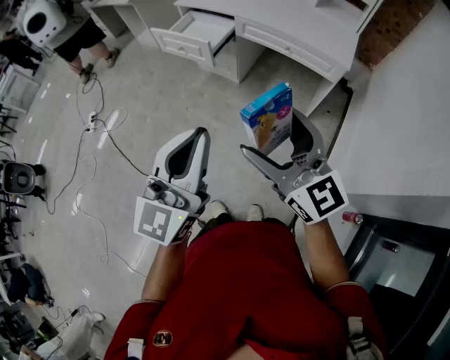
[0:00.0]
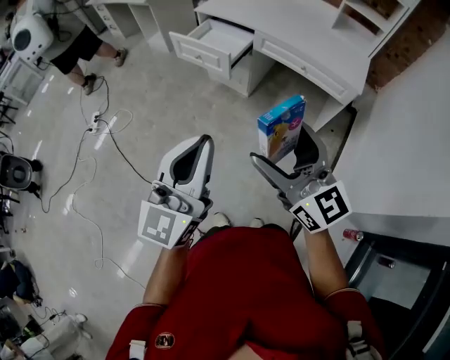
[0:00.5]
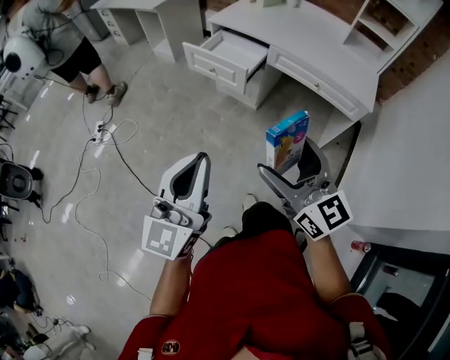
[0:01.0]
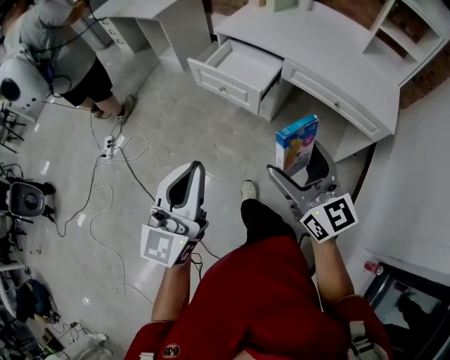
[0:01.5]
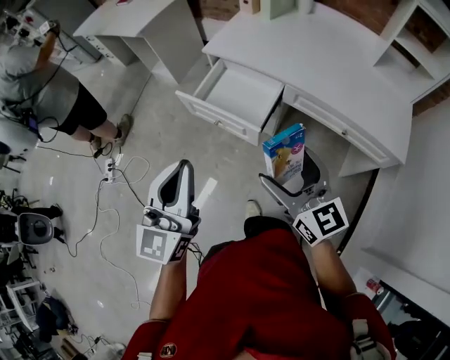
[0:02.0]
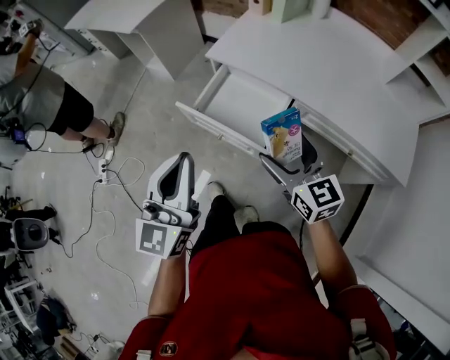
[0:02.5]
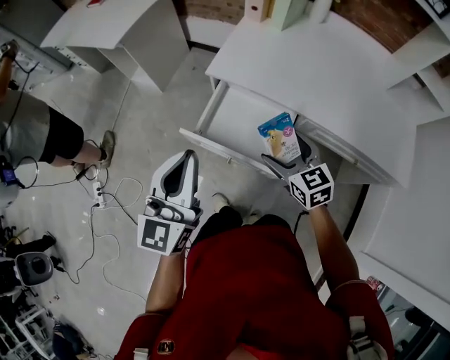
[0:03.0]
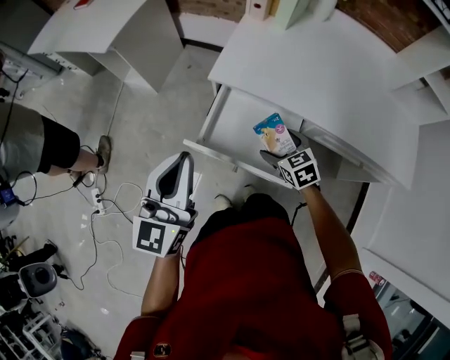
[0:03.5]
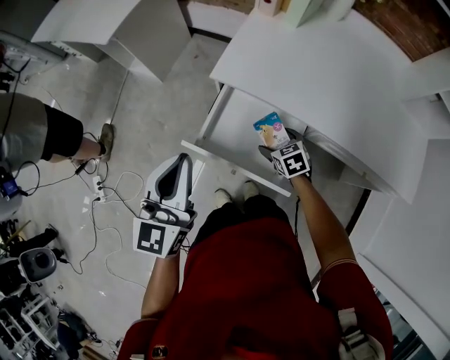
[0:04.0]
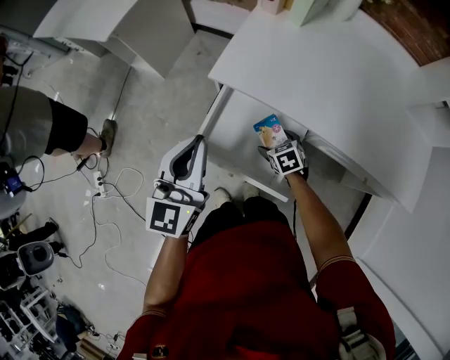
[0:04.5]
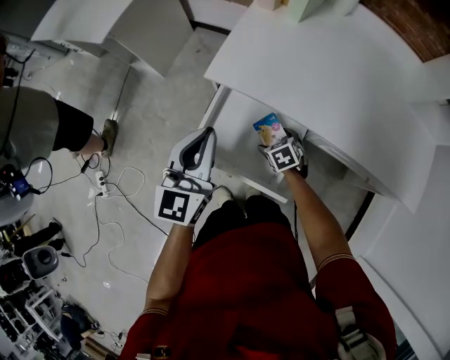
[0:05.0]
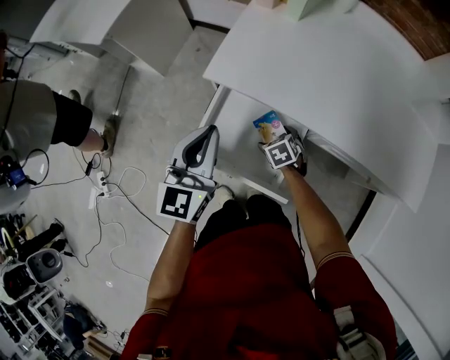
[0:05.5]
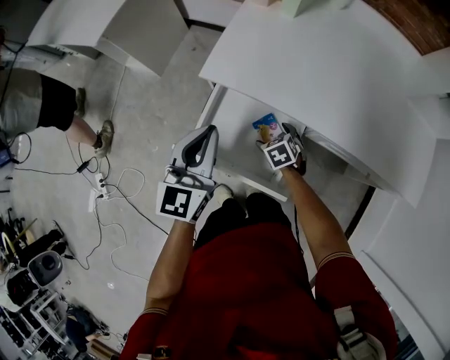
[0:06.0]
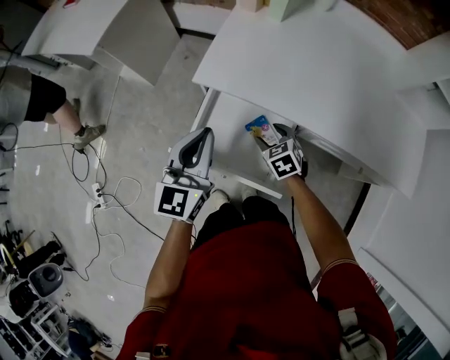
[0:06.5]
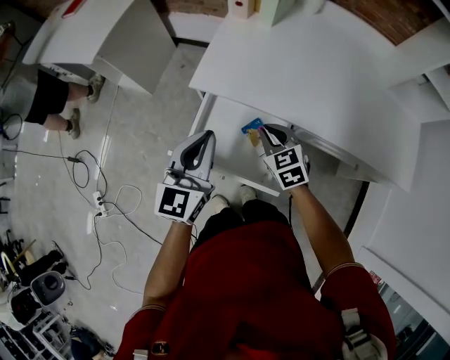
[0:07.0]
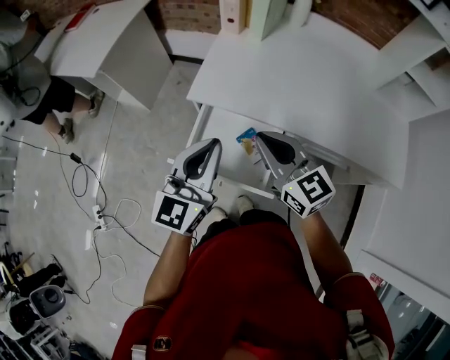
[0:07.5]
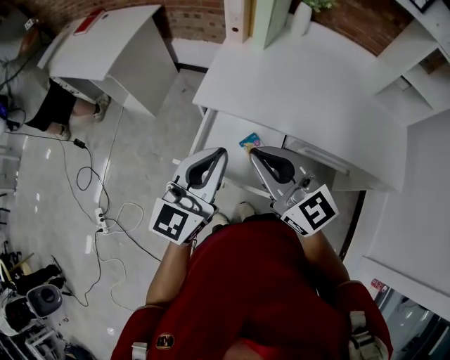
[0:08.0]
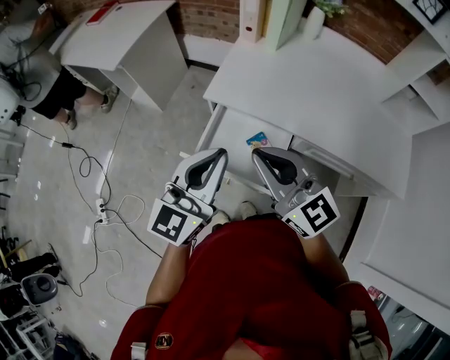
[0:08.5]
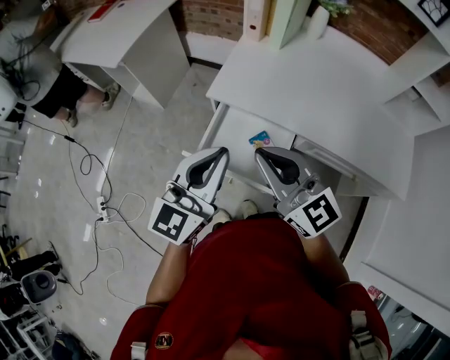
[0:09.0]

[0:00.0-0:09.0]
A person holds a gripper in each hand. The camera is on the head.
0:00.0 to 0:02.0: The pair of grippers is taken forward, approximately 50 cm.
0:02.0 to 0:04.5: The left gripper moves forward, roughly 40 cm. The right gripper heads forward and downward, covering about 50 cm, and angles its fingers downward, by roughly 60 degrees.
0:04.5 to 0:07.0: The left gripper shifts by approximately 5 cm. Meanwhile the right gripper goes approximately 15 cm upward, swivels about 20 degrees, and closes up.
0:07.0 to 0:09.0: The left gripper shifts roughly 15 cm upward and backward; the right gripper moves upward and backward, approximately 30 cm, and points its fingers about 40 degrees further upward.

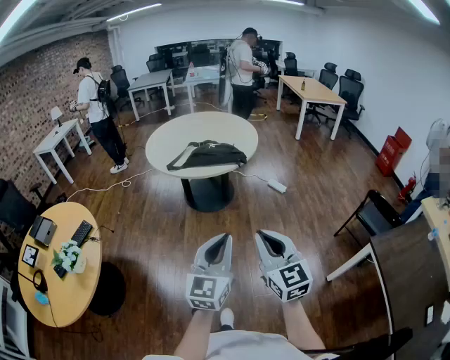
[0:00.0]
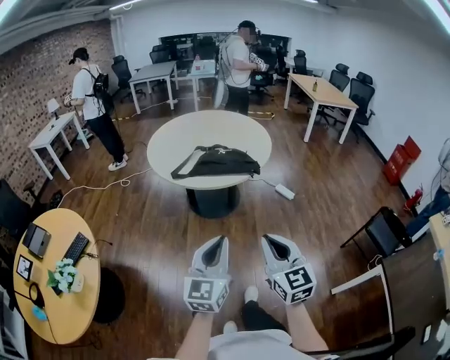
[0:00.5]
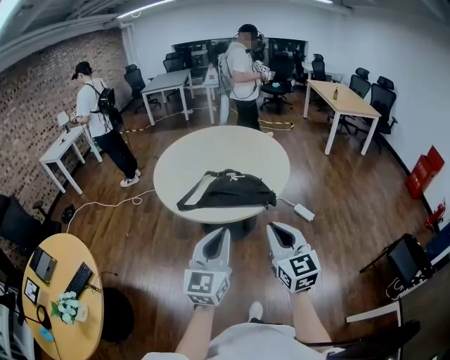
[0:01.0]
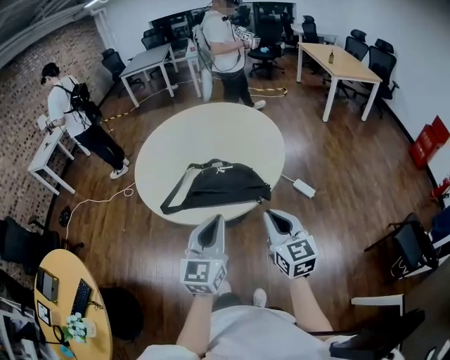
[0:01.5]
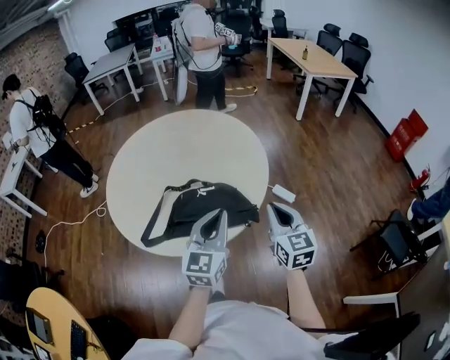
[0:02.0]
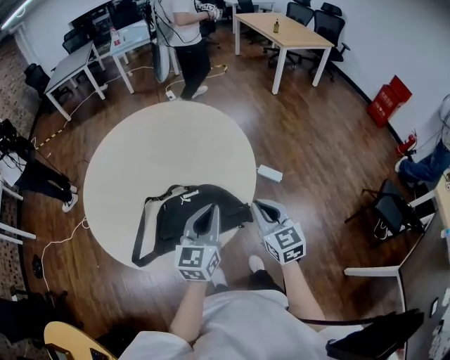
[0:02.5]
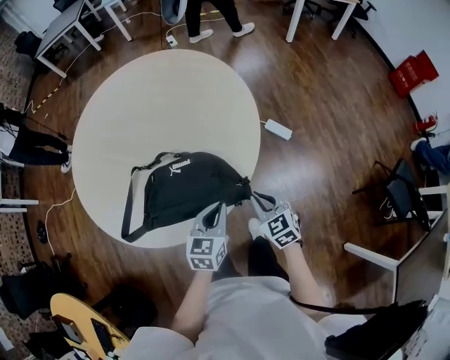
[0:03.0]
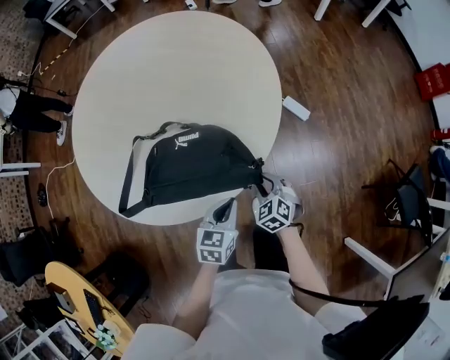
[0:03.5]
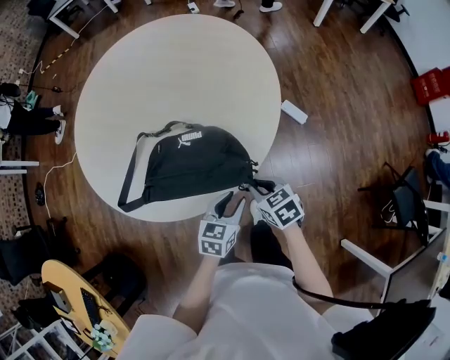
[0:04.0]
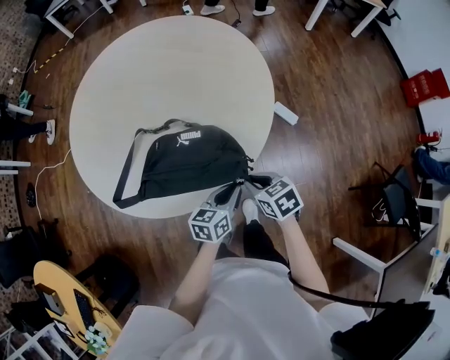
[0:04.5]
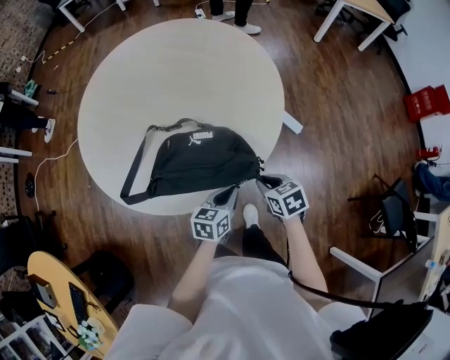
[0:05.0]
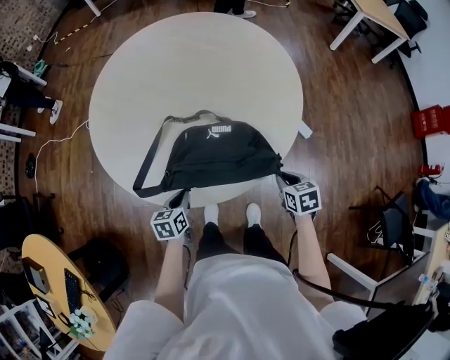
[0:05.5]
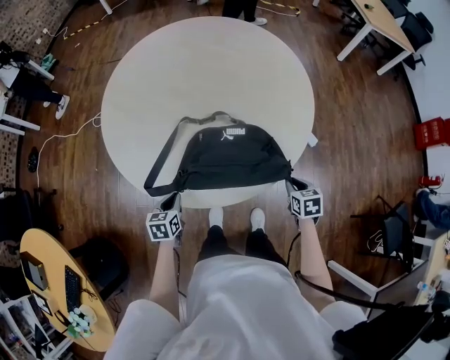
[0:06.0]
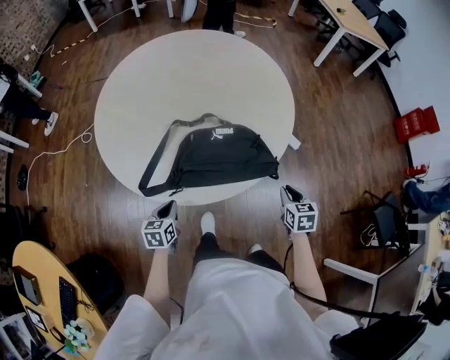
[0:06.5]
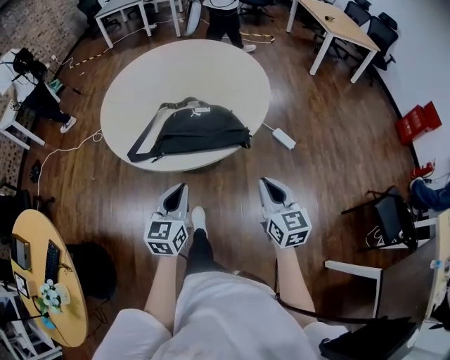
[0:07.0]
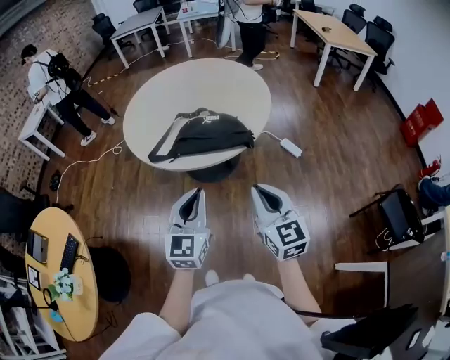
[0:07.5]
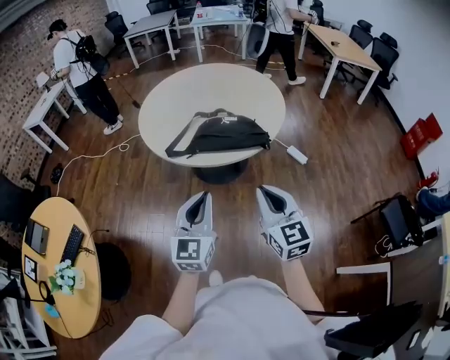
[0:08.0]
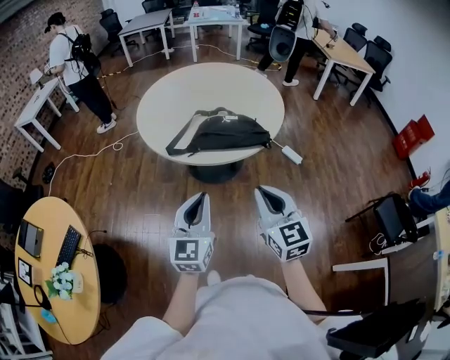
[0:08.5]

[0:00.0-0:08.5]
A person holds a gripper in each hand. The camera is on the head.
0:00.0 to 0:02.0: Both grippers are carried forward, about 70 cm. The right gripper swivels some 20 degrees.
0:02.0 to 0:04.0: Both grippers move downward, roughly 30 cm. The right gripper points its fingers roughly 40 degrees further downward; the left gripper tips its fingers downward by some 30 degrees, and opens up.
0:04.0 to 0:06.5: The right gripper moves backward, about 5 cm, and turns by approximately 30 degrees, while the left gripper is displaced to the left by roughly 30 cm, rotates approximately 20 degrees, and closes.
0:06.5 to 0:08.5: The right gripper goes some 50 cm backward, upward and to the left, and tilts its fingers some 40 degrees upward. Meanwhile the left gripper is displaced backward and upward by approximately 50 cm, and tilts its fingers roughly 40 degrees upward.

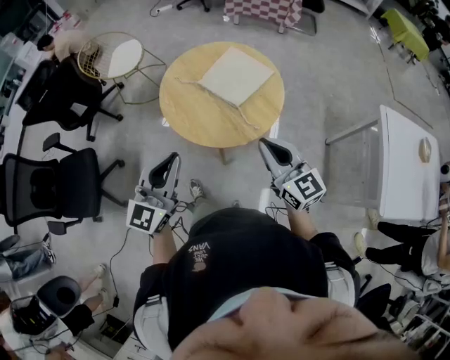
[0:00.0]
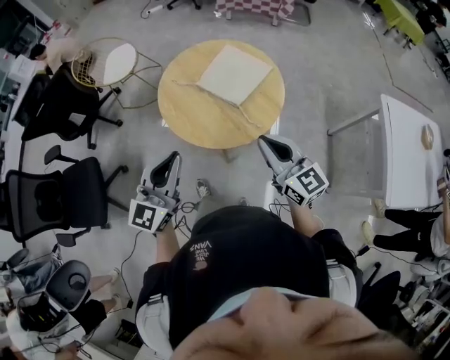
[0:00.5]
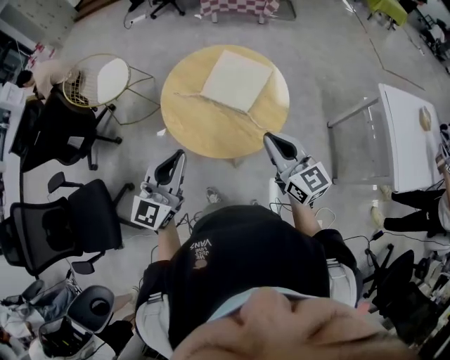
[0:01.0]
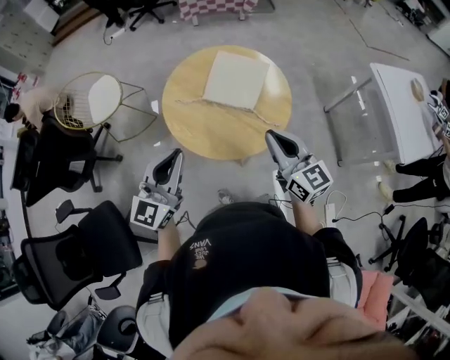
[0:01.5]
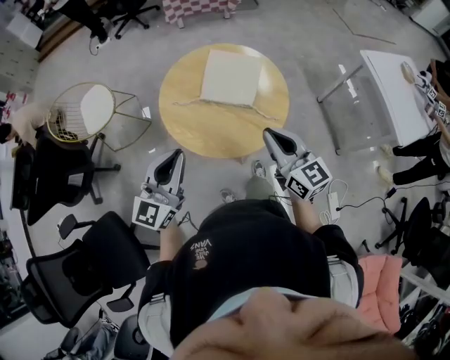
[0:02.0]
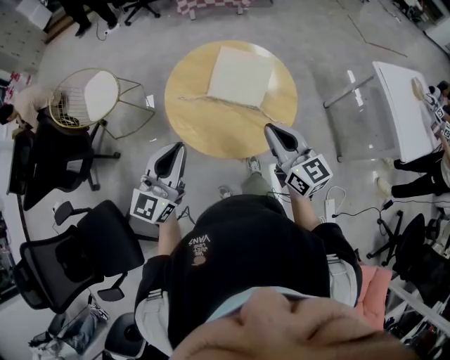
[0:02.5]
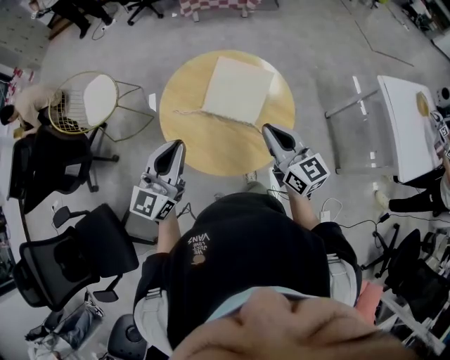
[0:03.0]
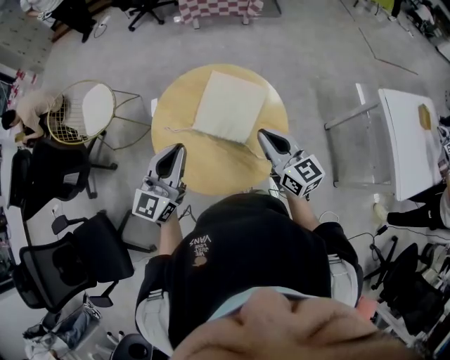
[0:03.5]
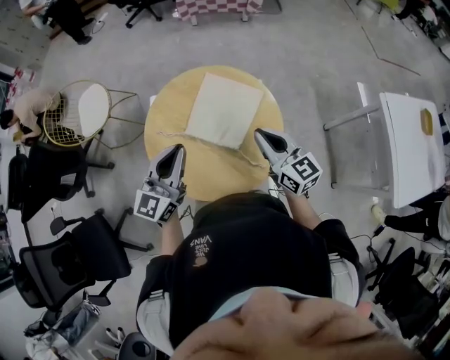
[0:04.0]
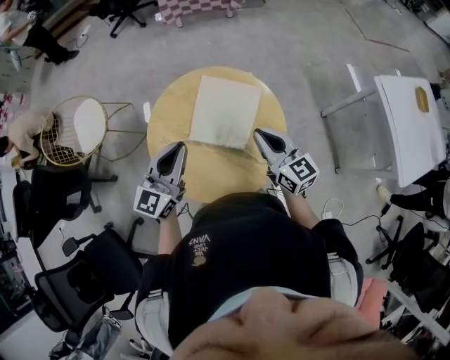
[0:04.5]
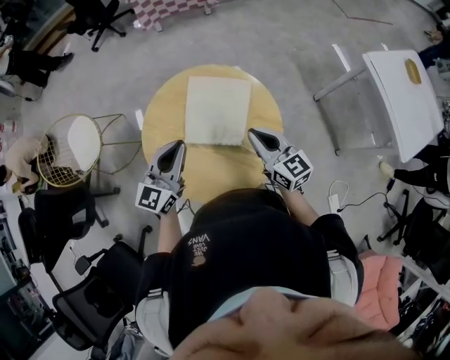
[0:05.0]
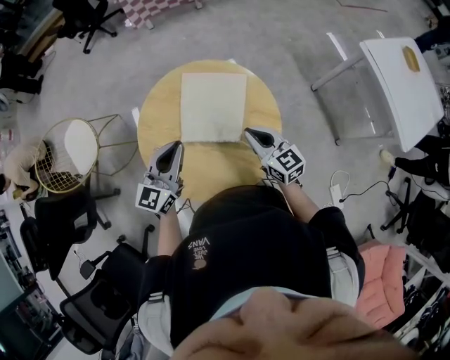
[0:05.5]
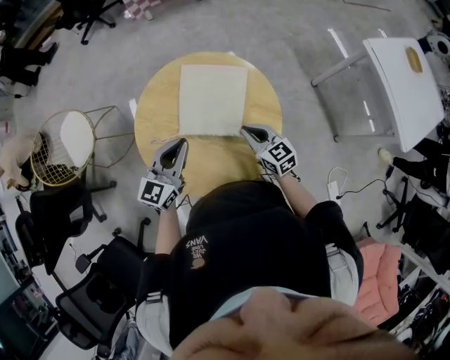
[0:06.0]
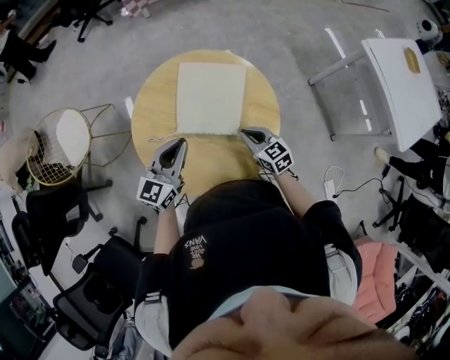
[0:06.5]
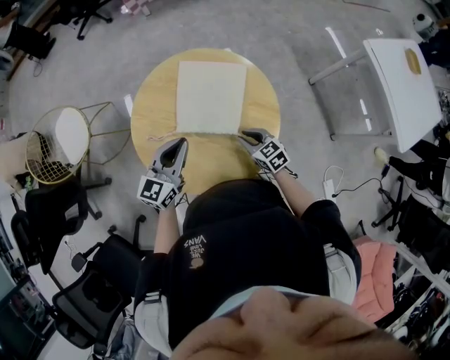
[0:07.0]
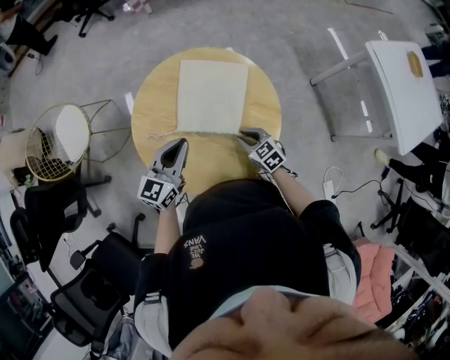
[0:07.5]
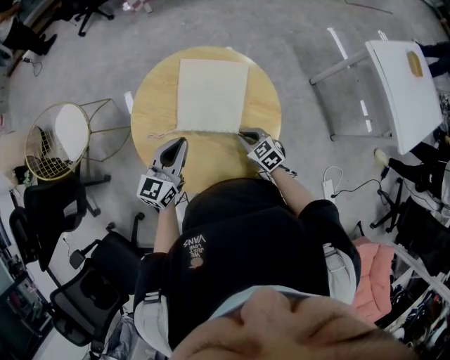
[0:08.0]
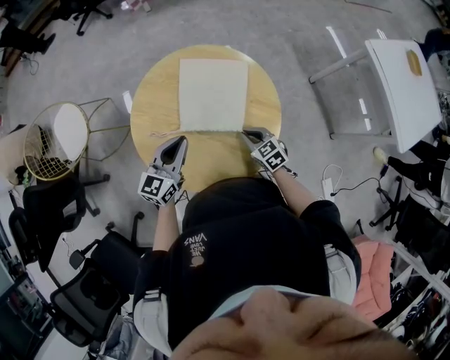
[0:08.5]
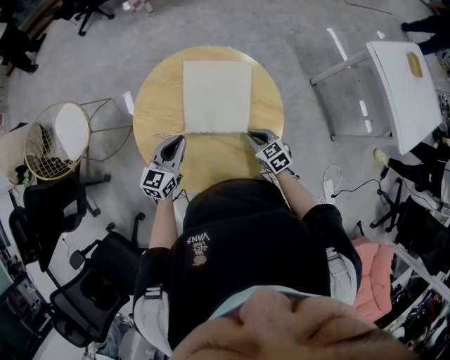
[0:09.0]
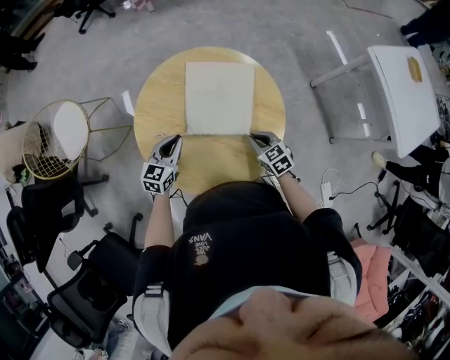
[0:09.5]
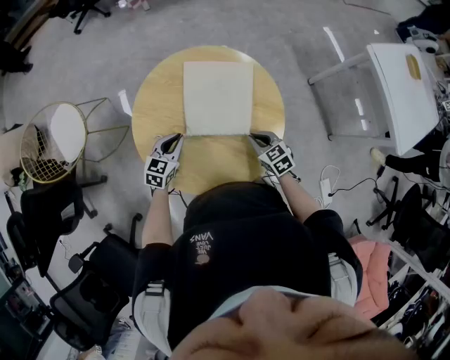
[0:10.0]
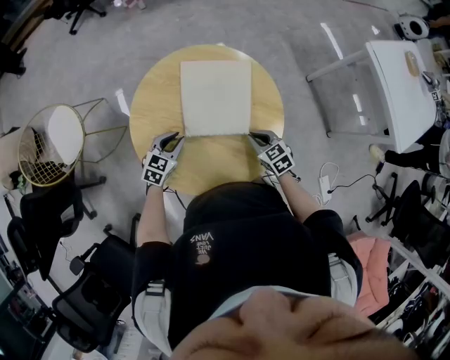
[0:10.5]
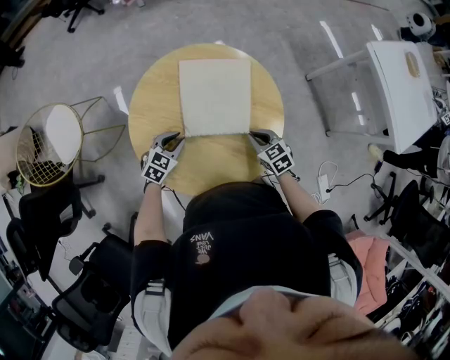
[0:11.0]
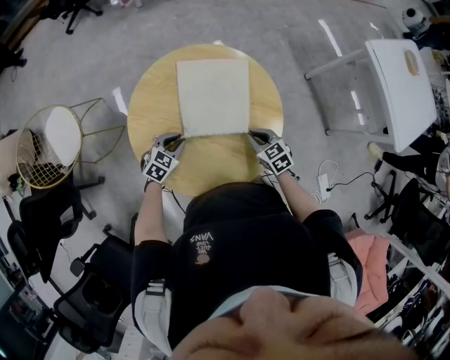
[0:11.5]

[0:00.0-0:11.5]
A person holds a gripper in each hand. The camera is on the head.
0:00.0 to 0:02.0: The left gripper shifts by about 20 cm, and rotates some 30 degrees, while the right gripper changes place by about 15 cm, and turns by roughly 30 degrees.
0:02.0 to 0:04.0: The two grippers go about 25 cm forward and to the right.
0:04.0 to 0:06.0: The right gripper goes some 15 cm downward; the left gripper shifts some 10 cm downward and forward, and changes its angle by roughly 20 degrees.
0:06.0 to 0:07.5: The right gripper moves downward, about 10 cm, and changes its angle by approximately 20 degrees.
0:07.5 to 0:09.5: The left gripper goes some 15 cm downward and to the left.
0:09.5 to 0:11.5: The left gripper goes some 10 cm downward, and turns by roughly 30 degrees.
